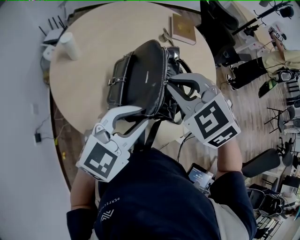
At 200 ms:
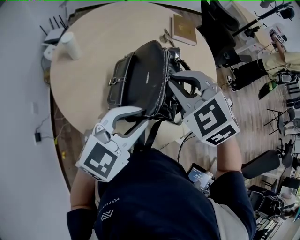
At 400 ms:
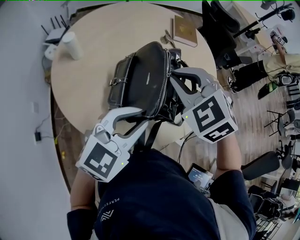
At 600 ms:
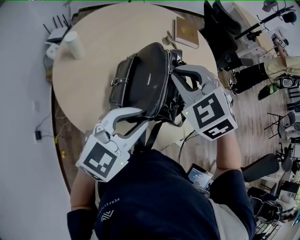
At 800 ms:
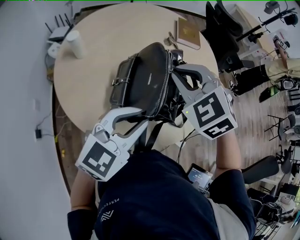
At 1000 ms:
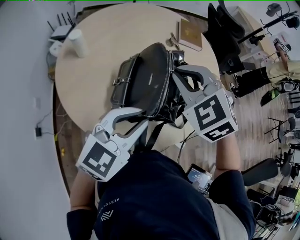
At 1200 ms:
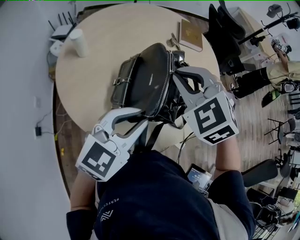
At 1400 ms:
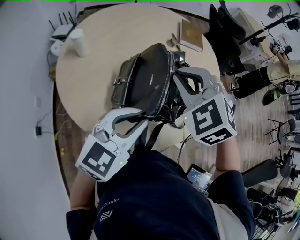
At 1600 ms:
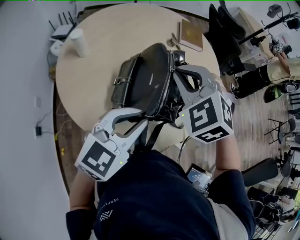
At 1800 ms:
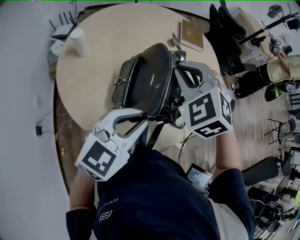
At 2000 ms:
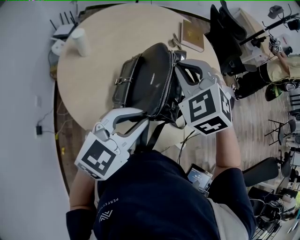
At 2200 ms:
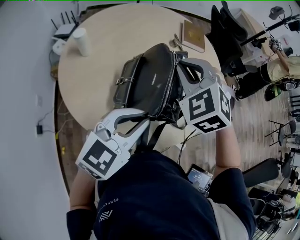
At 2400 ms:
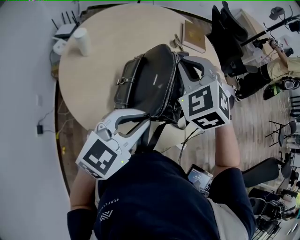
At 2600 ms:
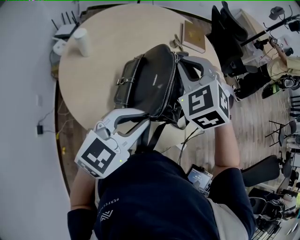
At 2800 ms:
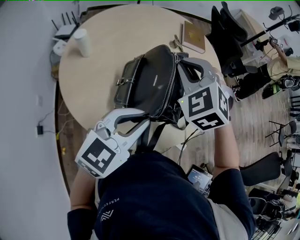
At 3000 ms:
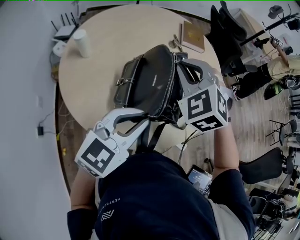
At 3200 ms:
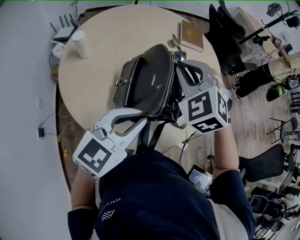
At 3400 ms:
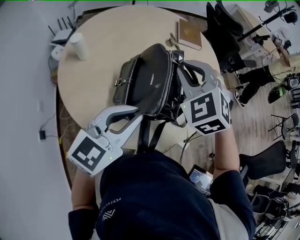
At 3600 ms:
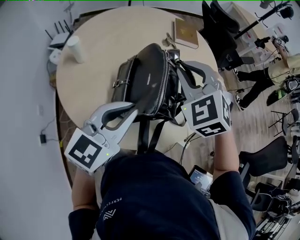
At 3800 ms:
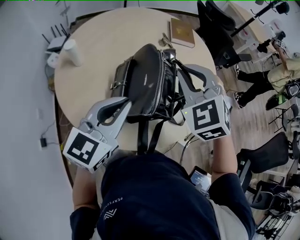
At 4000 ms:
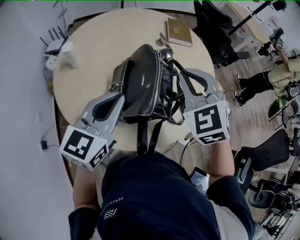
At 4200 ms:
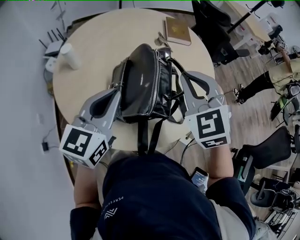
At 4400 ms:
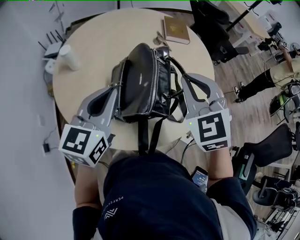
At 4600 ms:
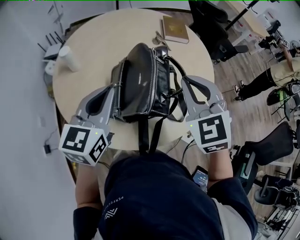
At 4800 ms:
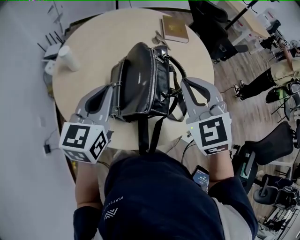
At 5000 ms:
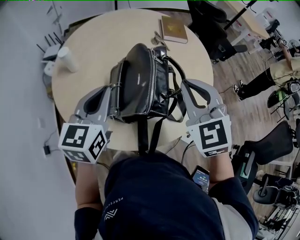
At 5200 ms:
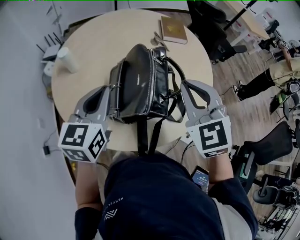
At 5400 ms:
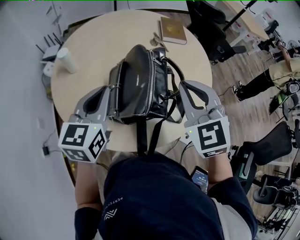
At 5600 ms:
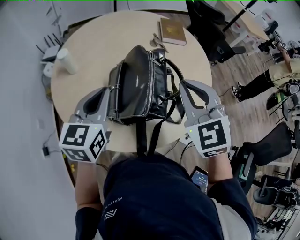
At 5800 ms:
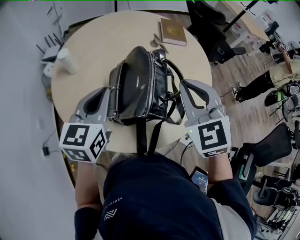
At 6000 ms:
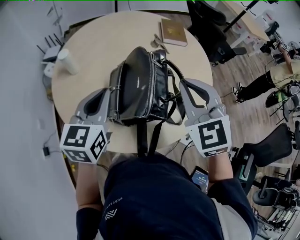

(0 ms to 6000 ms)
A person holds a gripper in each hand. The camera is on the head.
0 ms - 1600 ms: There are only small adjustments of the grippers.
1600 ms - 3000 ms: The grippers make only small movements.
3000 ms - 4400 ms: The right gripper travels to the right and backward by approximately 10 cm, and rotates about 20 degrees. The left gripper heads to the left and forward, covering some 10 cm, and swivels about 20 degrees.
4400 ms - 6000 ms: There are only small adjustments of the grippers.

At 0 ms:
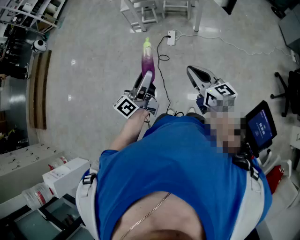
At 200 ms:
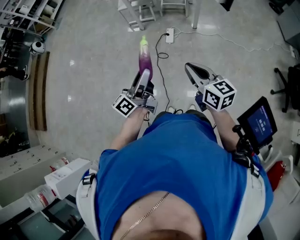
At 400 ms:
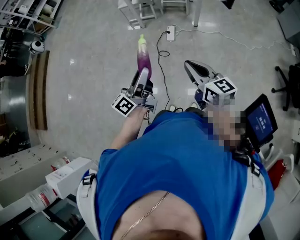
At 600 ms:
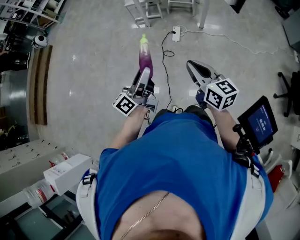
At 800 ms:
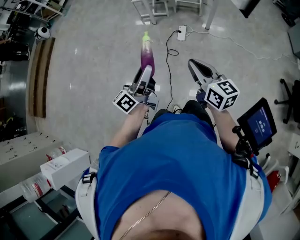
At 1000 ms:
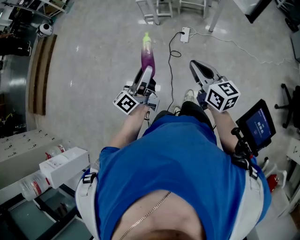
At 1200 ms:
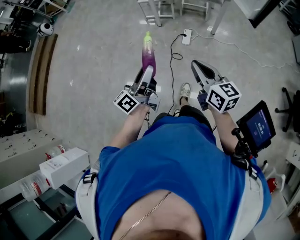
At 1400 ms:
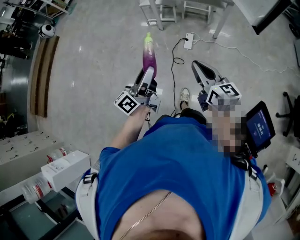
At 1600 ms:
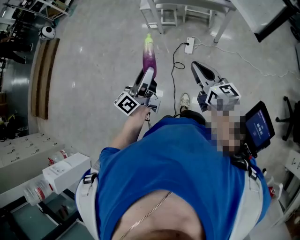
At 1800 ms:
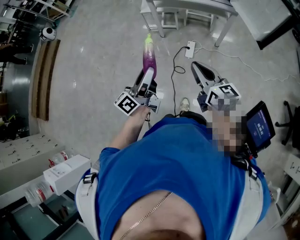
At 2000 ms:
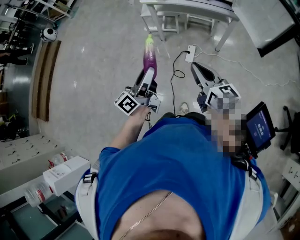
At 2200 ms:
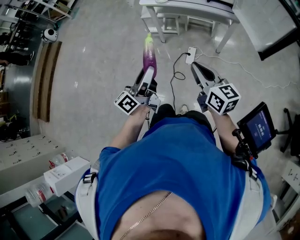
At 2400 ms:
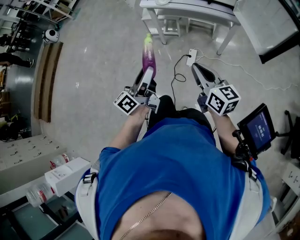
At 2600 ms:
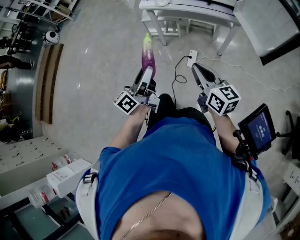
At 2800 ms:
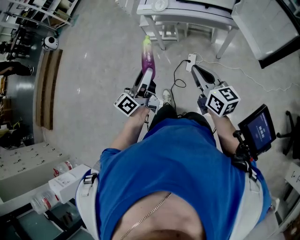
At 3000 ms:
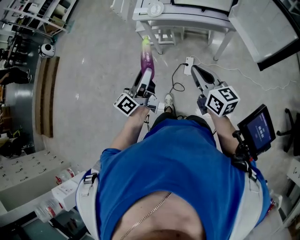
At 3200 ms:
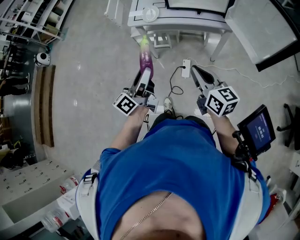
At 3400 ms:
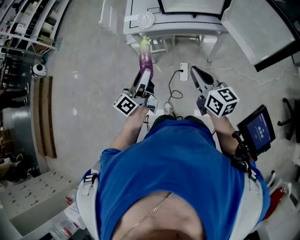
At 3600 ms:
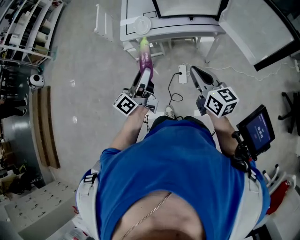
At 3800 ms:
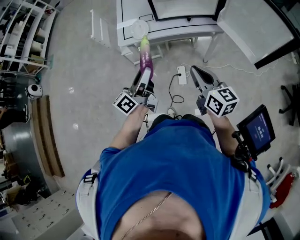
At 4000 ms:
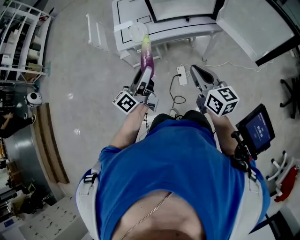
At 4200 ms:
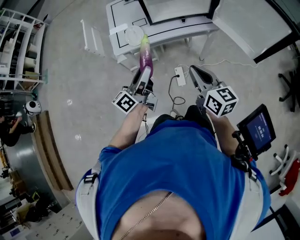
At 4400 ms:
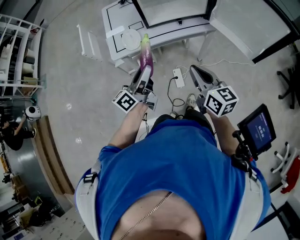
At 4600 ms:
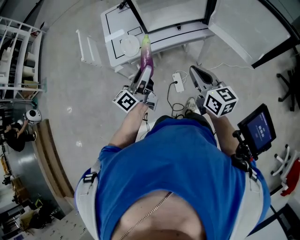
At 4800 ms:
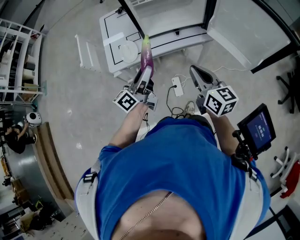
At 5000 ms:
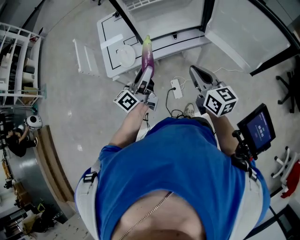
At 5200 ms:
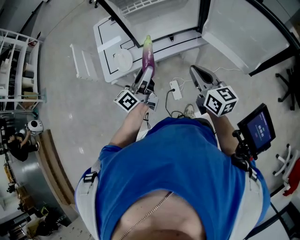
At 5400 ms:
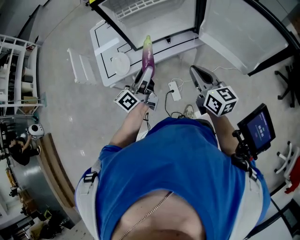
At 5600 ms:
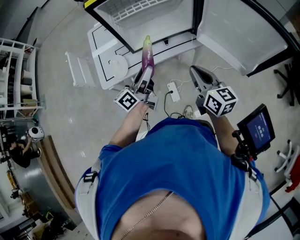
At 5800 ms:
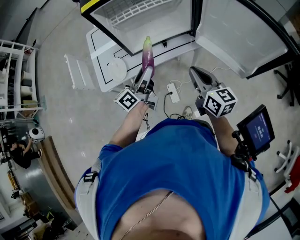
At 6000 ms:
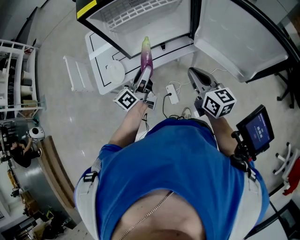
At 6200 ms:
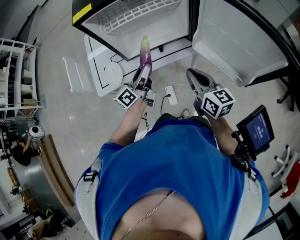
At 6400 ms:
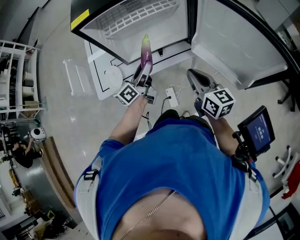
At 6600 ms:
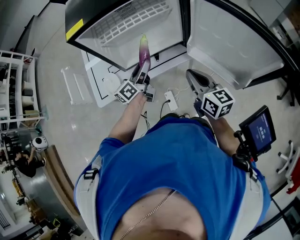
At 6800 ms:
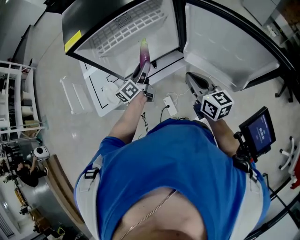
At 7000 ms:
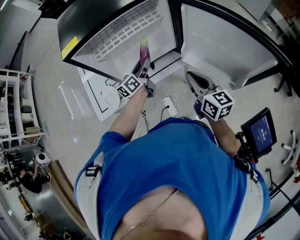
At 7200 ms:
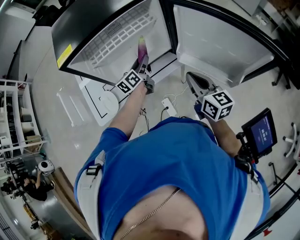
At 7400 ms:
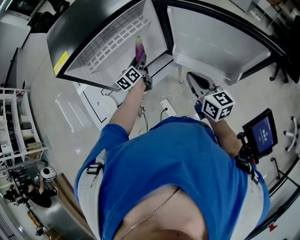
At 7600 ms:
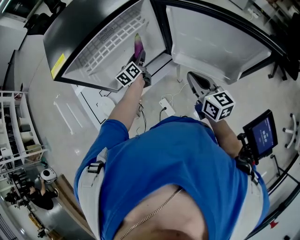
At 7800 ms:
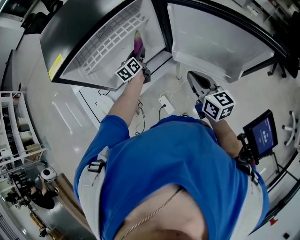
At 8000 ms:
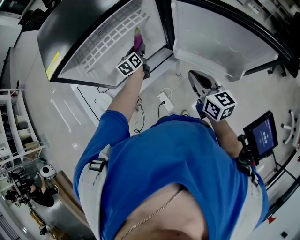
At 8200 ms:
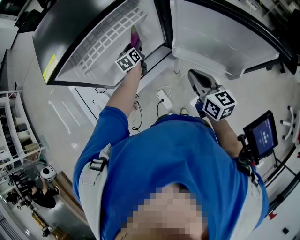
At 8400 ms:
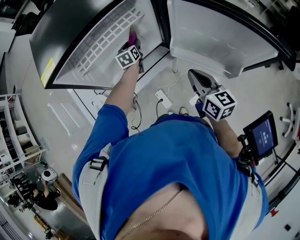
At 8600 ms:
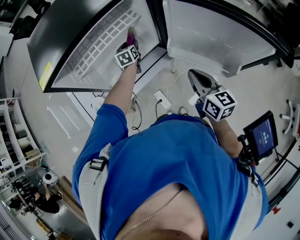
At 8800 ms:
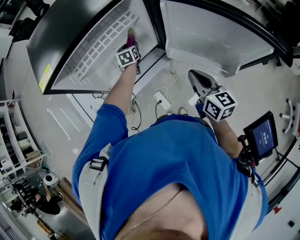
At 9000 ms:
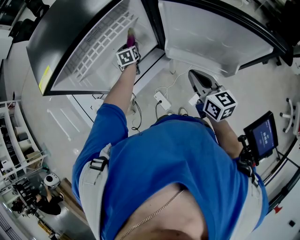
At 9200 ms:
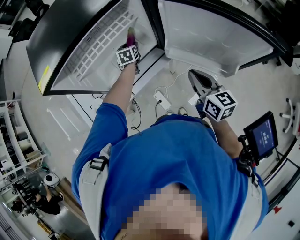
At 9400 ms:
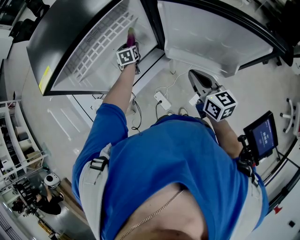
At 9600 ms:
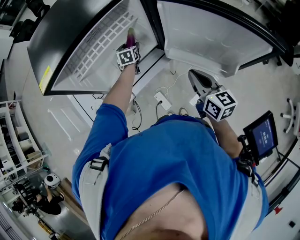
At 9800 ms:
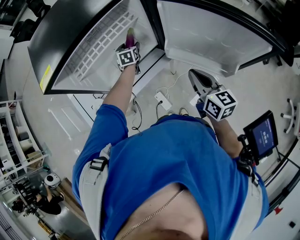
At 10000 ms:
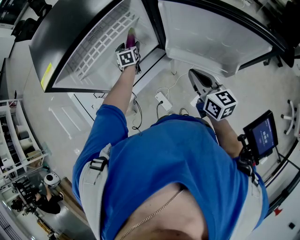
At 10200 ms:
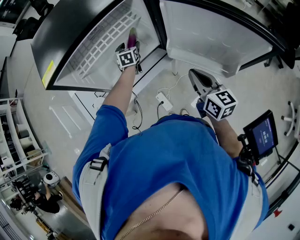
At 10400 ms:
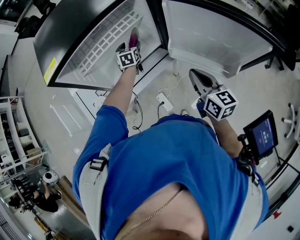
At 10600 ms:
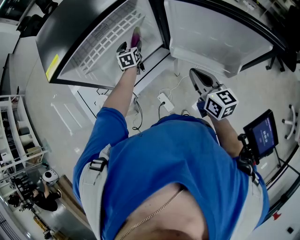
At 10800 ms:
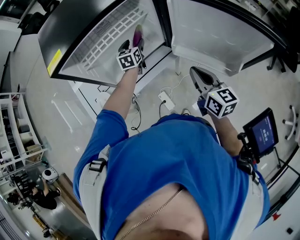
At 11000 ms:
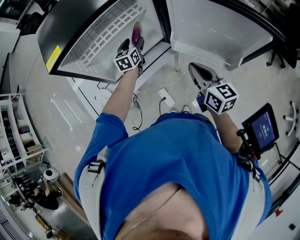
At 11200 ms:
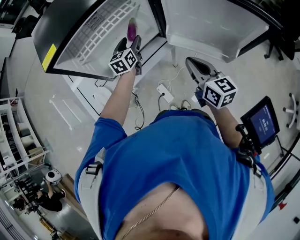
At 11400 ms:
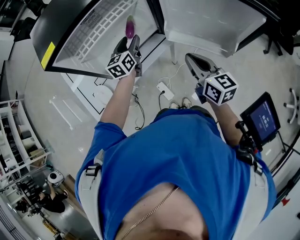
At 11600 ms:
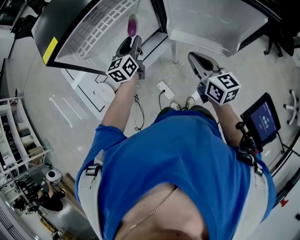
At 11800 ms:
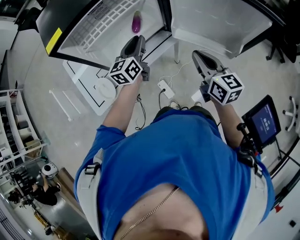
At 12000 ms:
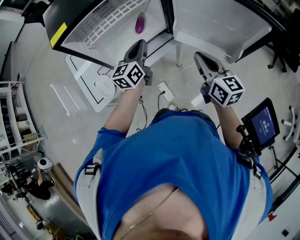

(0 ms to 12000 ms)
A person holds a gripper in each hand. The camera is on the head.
0 ms - 1600 ms: Both grippers move forward and to the left, approximately 20 cm.
1600 ms - 3000 ms: Both grippers travel together forward, some 20 cm.
3000 ms - 4400 ms: The left gripper ends up some 25 cm from where it was, and turns by roughly 30 degrees; the right gripper shifts by about 15 cm, and turns by approximately 20 degrees.
4400 ms - 6000 ms: The two grippers go roughly 20 cm forward and to the right.
6000 ms - 7600 ms: The left gripper heads forward, covering some 25 cm, and swivels roughly 30 degrees. The right gripper moves to the right and forward, roughly 10 cm.
7600 ms - 9000 ms: The left gripper shifts about 10 cm forward and downward, and rotates about 40 degrees.
9000 ms - 10400 ms: There are only small adjustments of the grippers.
10400 ms - 12000 ms: The left gripper goes some 25 cm backward and upward, rotates about 40 degrees, and closes, while the right gripper moves approximately 5 cm.

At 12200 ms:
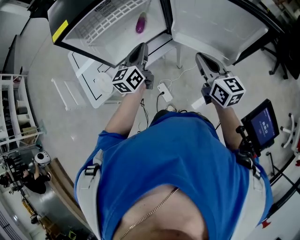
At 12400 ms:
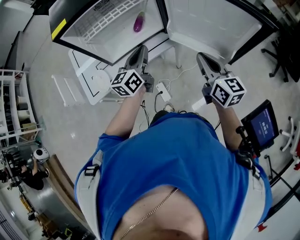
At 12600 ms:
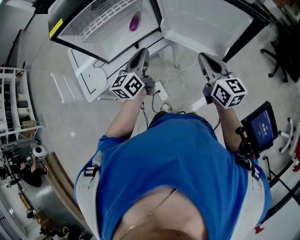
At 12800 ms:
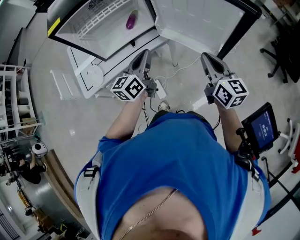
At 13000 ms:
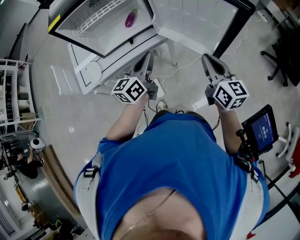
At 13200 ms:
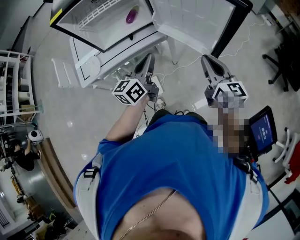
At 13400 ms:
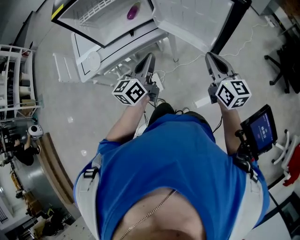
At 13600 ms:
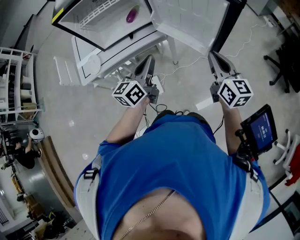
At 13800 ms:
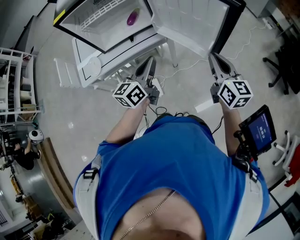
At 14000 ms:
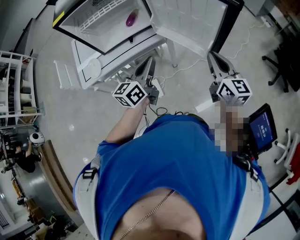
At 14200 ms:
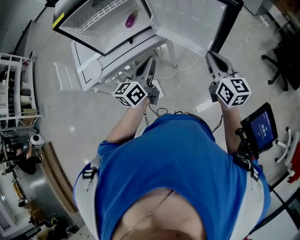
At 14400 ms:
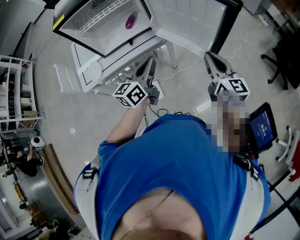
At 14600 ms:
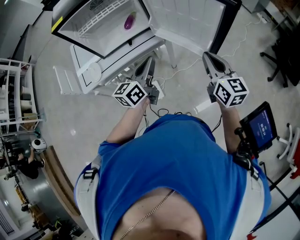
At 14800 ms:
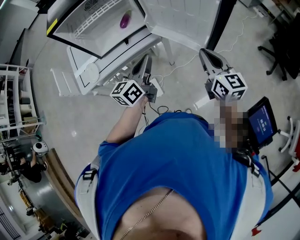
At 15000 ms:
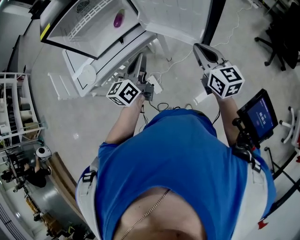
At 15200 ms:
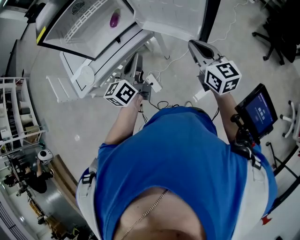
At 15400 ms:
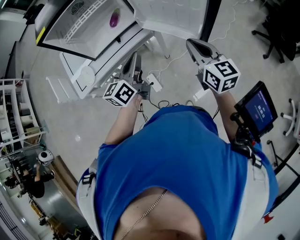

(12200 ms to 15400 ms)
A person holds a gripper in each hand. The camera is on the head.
12200 ms - 13800 ms: The left gripper heads backward and to the right, covering roughly 25 cm; the right gripper heads to the right and backward, covering about 20 cm.
13800 ms - 15400 ms: The right gripper moves to the left, approximately 5 cm.

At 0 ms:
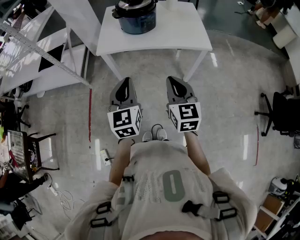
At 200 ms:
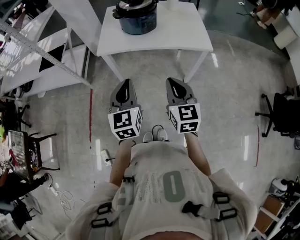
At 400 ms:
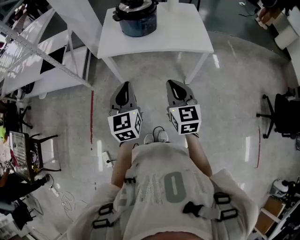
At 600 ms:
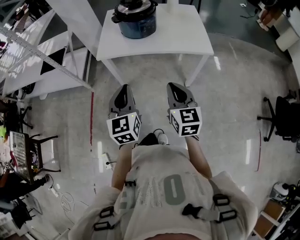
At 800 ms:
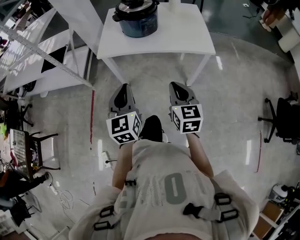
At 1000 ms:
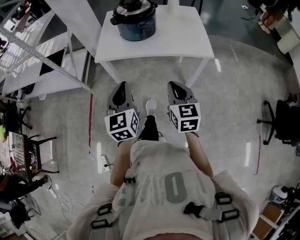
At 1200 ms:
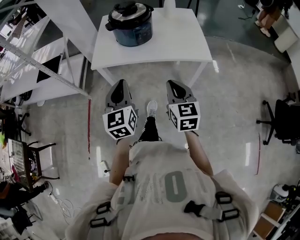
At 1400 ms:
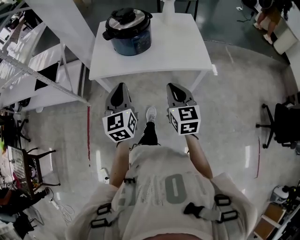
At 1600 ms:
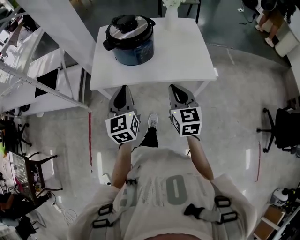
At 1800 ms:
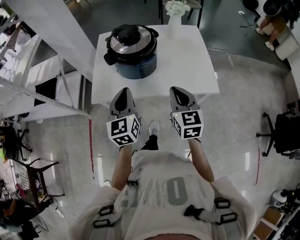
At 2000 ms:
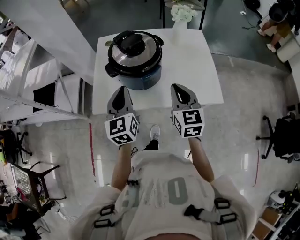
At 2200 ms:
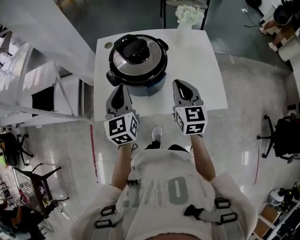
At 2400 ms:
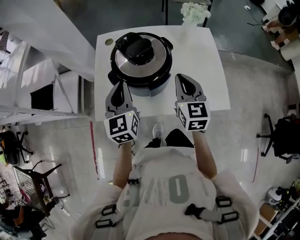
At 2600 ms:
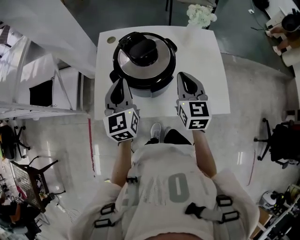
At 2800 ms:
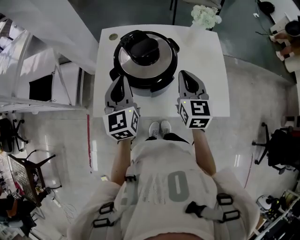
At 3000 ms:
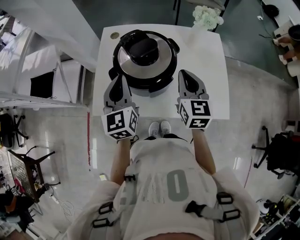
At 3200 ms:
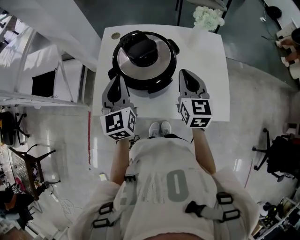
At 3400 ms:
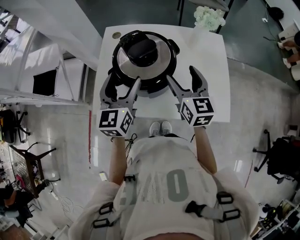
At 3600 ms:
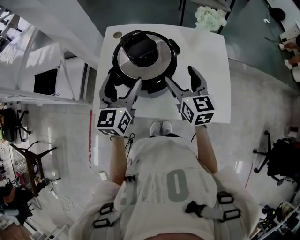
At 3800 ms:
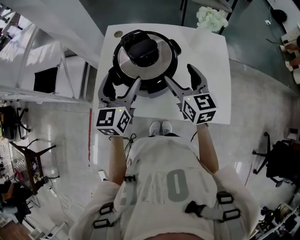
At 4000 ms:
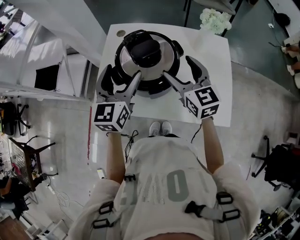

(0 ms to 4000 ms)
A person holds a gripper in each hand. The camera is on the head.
0 ms - 1400 ms: The right gripper goes approximately 15 cm forward and to the right; the left gripper goes some 15 cm forward.
1400 ms - 2600 ms: The two grippers go about 35 cm forward.
2600 ms - 4000 ms: The left gripper opens up, while the right gripper moves forward, about 5 cm, rotates about 30 degrees, and opens up.
